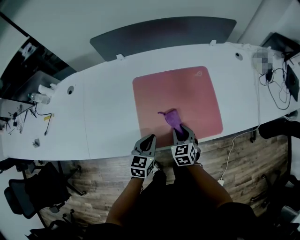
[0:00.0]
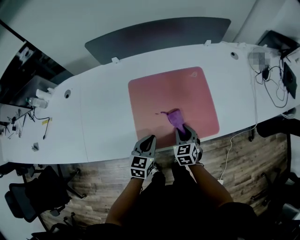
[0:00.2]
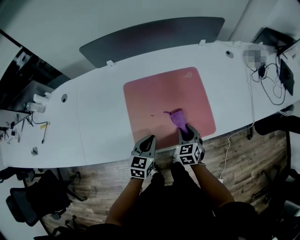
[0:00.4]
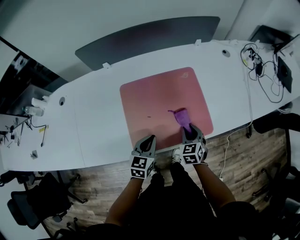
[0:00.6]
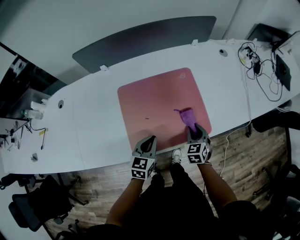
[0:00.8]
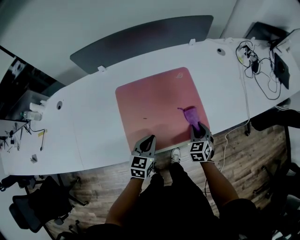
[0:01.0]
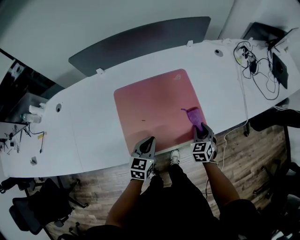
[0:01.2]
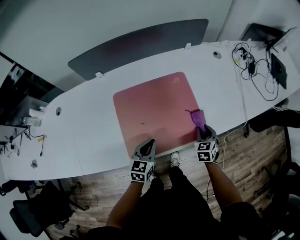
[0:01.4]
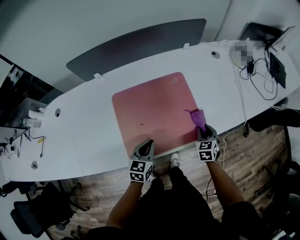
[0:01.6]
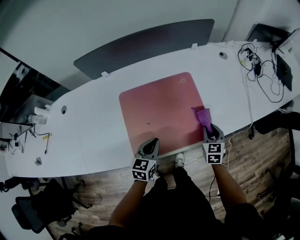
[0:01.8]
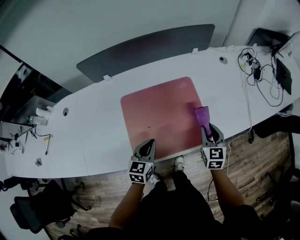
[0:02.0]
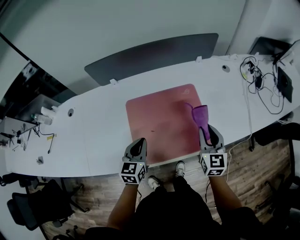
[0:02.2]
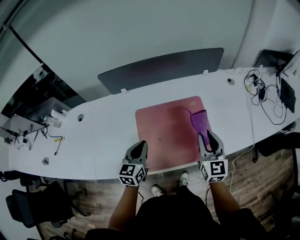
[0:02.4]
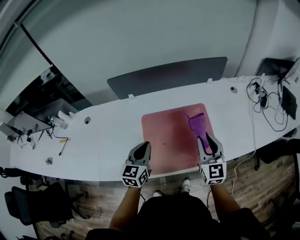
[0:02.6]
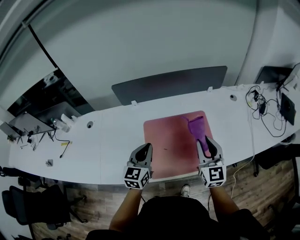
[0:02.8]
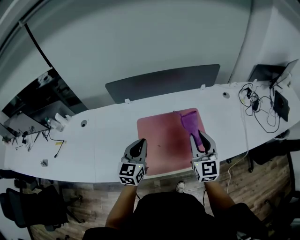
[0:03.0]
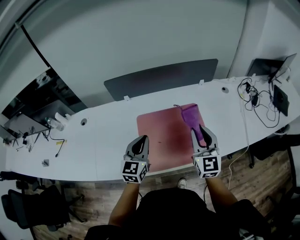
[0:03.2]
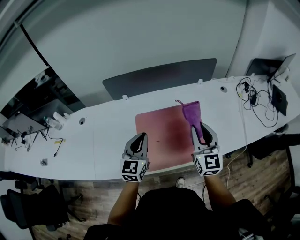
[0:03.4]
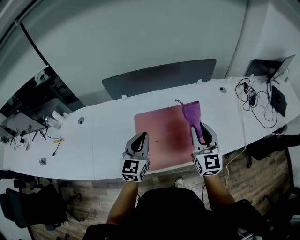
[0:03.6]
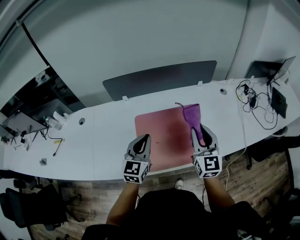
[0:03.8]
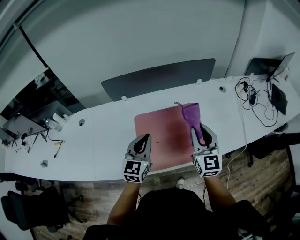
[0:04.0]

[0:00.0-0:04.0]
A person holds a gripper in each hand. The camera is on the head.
0:00.0 to 0:01.4: The right gripper travels to the right by about 20 cm. Meanwhile the left gripper heads to the right, covering some 10 cm.
0:01.4 to 0:02.6: Both grippers move upward and to the left, about 25 cm. The right gripper tilts its fingers approximately 40 degrees upward, while the left gripper turns by about 20 degrees.
0:02.6 to 0:04.0: Both grippers travel together upward, approximately 5 cm.

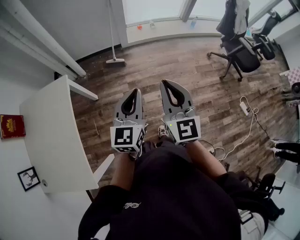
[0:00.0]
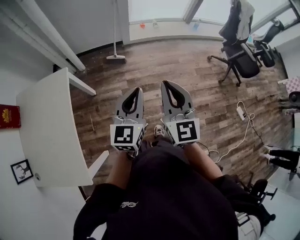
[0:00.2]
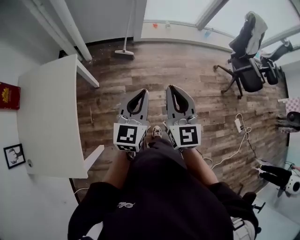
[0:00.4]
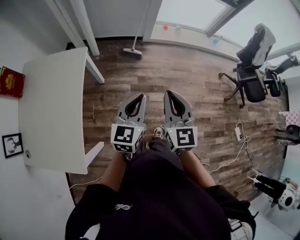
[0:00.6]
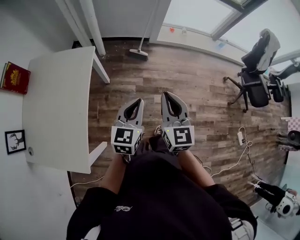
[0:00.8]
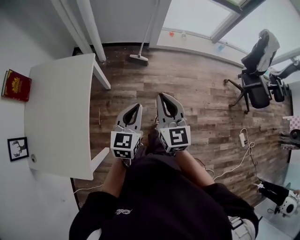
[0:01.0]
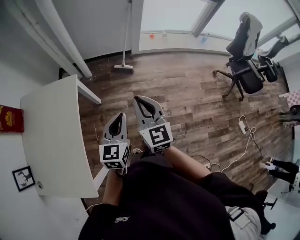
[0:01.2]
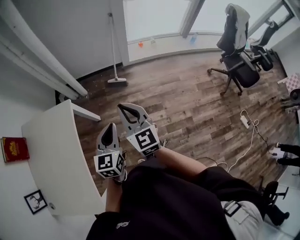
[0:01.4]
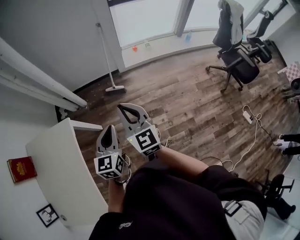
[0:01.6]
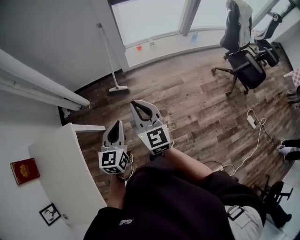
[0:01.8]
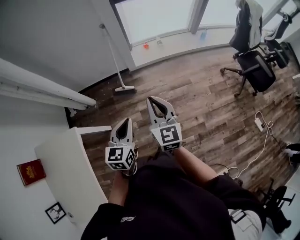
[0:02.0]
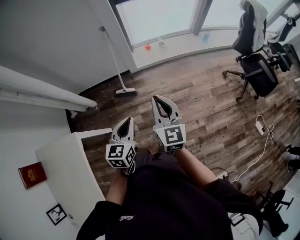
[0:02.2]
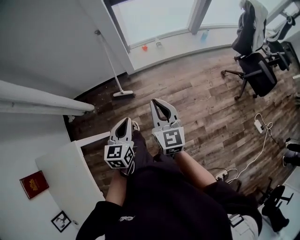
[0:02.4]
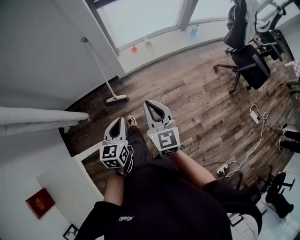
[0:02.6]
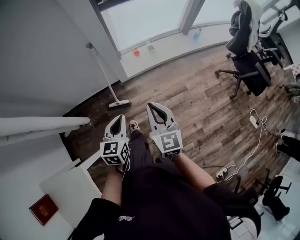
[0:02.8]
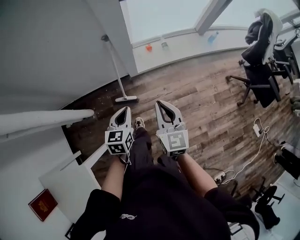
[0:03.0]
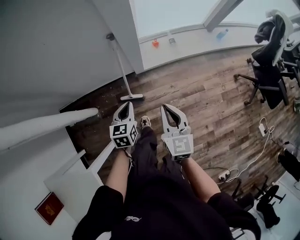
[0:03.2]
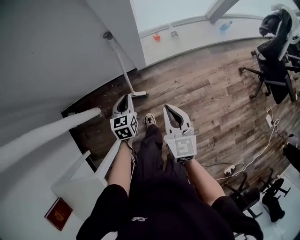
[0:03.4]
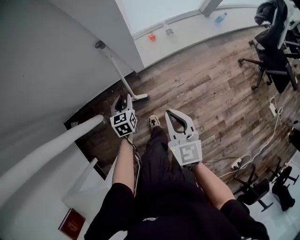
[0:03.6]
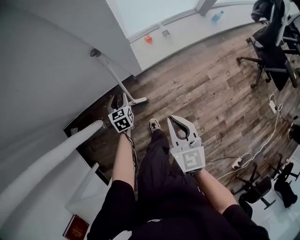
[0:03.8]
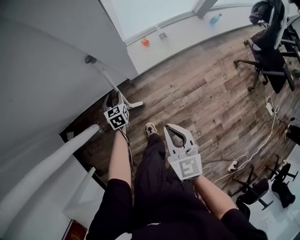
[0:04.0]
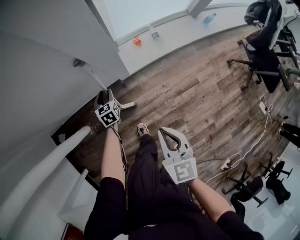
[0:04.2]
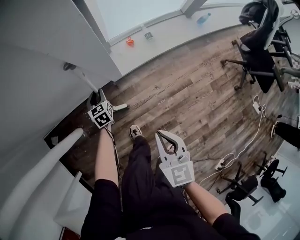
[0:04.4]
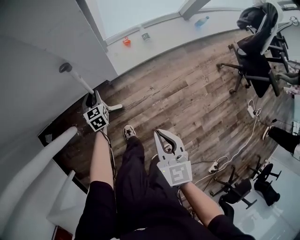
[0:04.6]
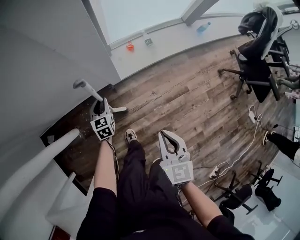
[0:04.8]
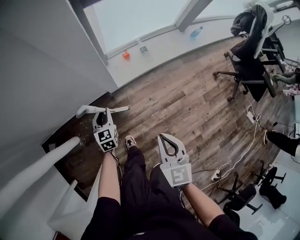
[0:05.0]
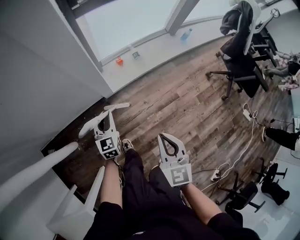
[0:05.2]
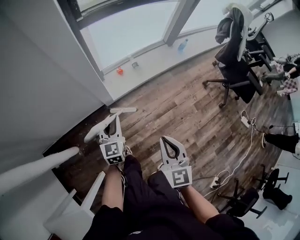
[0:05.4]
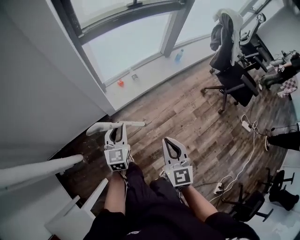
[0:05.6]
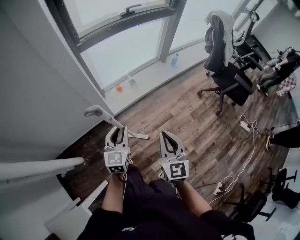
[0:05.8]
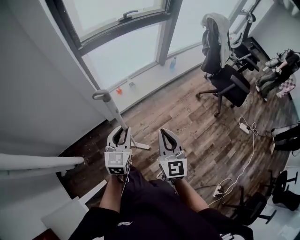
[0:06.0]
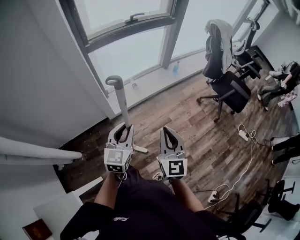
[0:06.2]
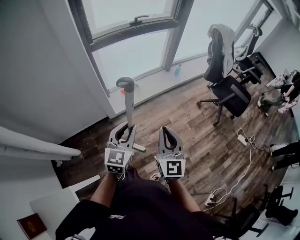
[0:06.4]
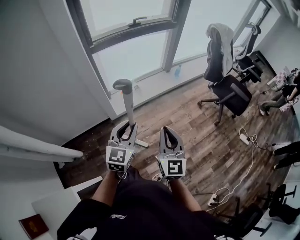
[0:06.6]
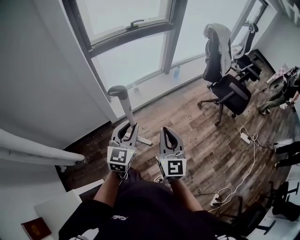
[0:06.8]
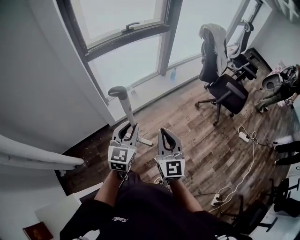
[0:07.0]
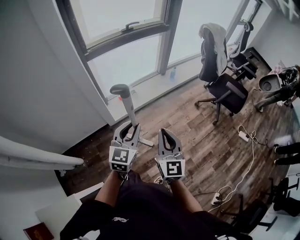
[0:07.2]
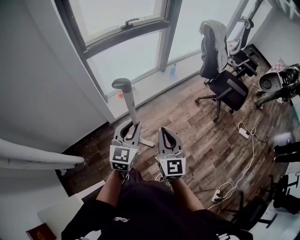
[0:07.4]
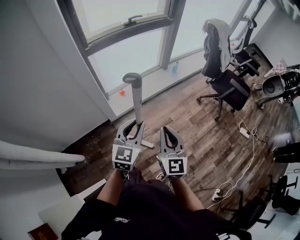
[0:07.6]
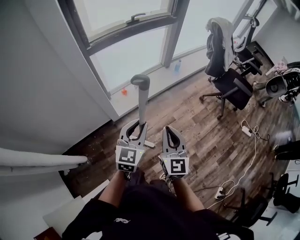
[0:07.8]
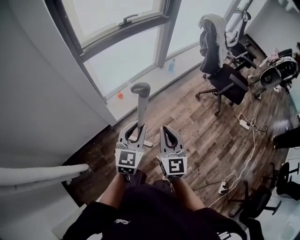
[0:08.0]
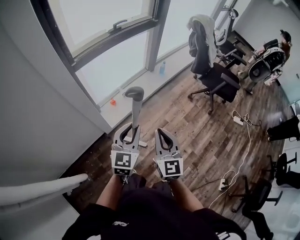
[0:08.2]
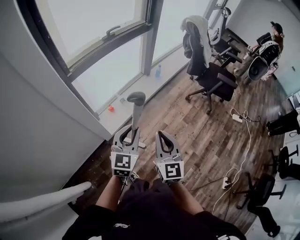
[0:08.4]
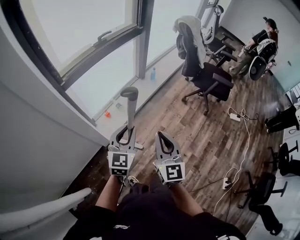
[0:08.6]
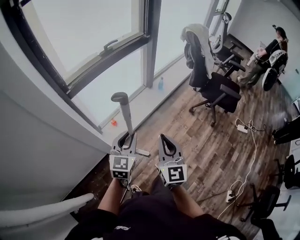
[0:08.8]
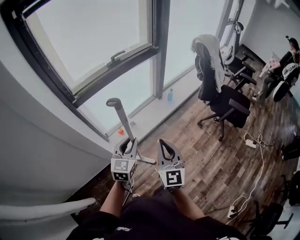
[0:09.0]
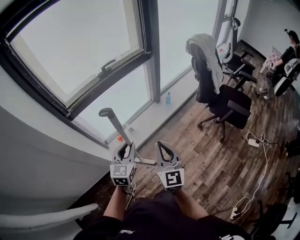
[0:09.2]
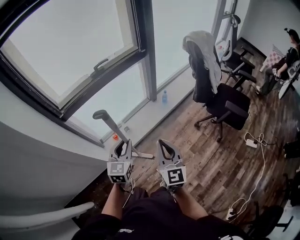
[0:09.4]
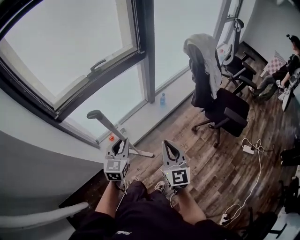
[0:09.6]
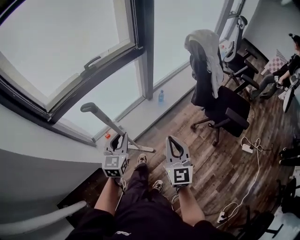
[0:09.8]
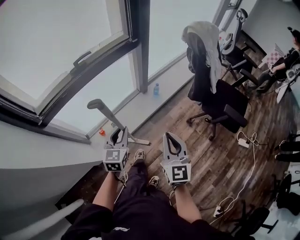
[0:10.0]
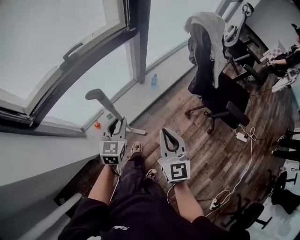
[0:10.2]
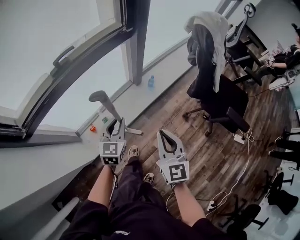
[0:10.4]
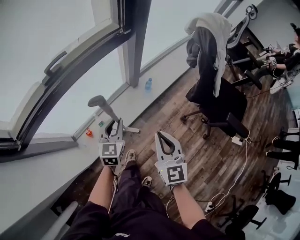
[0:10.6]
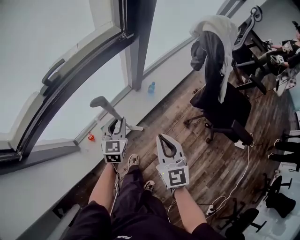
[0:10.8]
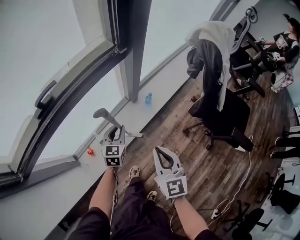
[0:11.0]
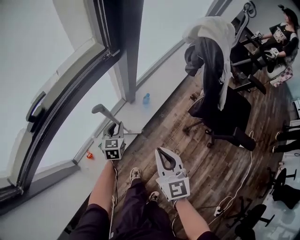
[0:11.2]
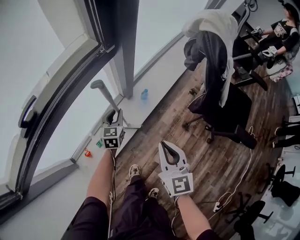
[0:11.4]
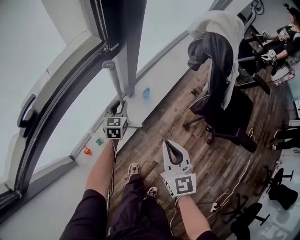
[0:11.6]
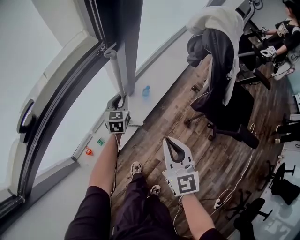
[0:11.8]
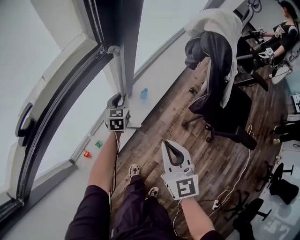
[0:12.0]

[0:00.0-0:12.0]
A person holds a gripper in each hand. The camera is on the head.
0:00.0 to 0:01.6: The left gripper travels forward, to the left and downward by about 20 cm; the right gripper is displaced forward and to the left by roughly 25 cm.
0:01.6 to 0:03.0: The grippers both shift forward by some 40 cm. The right gripper turns by roughly 20 degrees.
0:03.0 to 0:04.4: The right gripper moves downward and forward, about 15 cm. The left gripper heads forward and downward, covering about 40 cm, and opens up.
0:04.4 to 0:06.0: The left gripper goes approximately 40 cm upward, and swivels approximately 40 degrees. The right gripper shifts by about 30 cm, and rotates about 30 degrees.
0:06.0 to 0:07.6: The left gripper heads upward and to the right, covering some 10 cm.
0:07.6 to 0:09.0: The two grippers go roughly 20 cm forward.
0:09.0 to 0:10.4: The left gripper goes some 35 cm forward. Meanwhile the right gripper travels forward and to the right by roughly 35 cm.
0:10.4 to 0:12.0: The right gripper goes roughly 20 cm forward, while the left gripper travels forward and downward by roughly 40 cm.

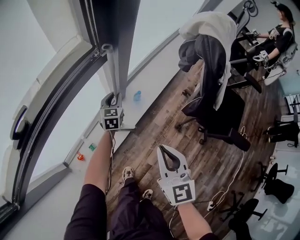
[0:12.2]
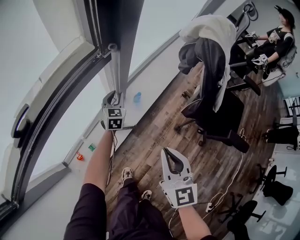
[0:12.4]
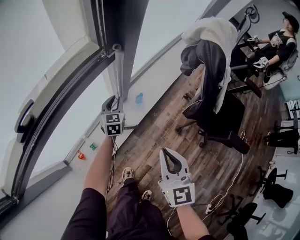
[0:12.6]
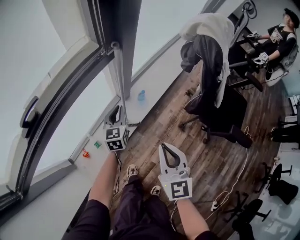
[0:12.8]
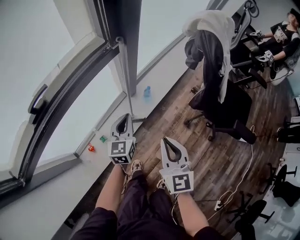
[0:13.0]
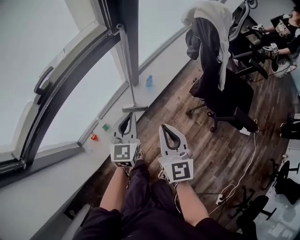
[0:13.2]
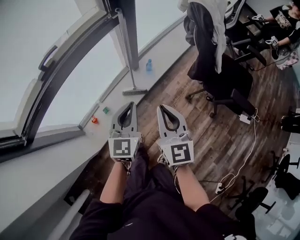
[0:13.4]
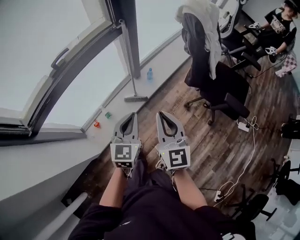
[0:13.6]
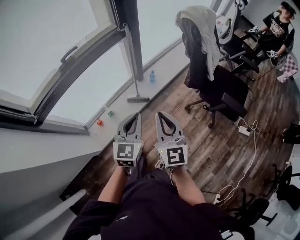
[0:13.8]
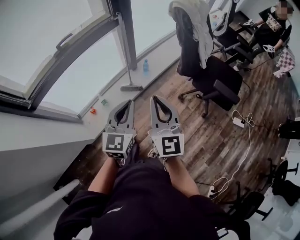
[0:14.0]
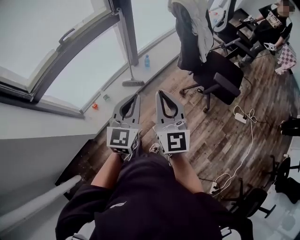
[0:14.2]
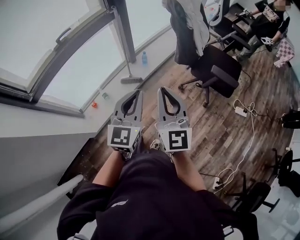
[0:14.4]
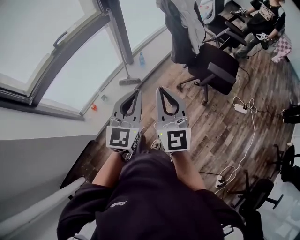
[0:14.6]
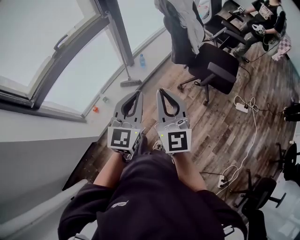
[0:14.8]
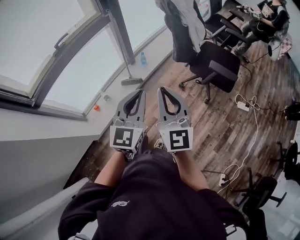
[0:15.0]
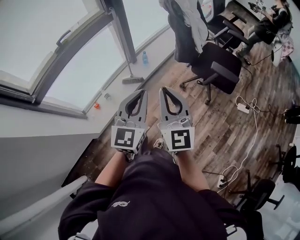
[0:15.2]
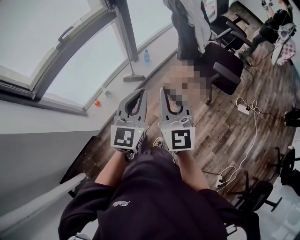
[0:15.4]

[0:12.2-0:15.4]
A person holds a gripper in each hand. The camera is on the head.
0:12.2 to 0:13.8: The left gripper heads backward and upward, covering some 60 cm, while the right gripper goes some 30 cm backward and upward.
0:13.8 to 0:15.4: Both grippers travel together backward, to the right and upward, roughly 15 cm.

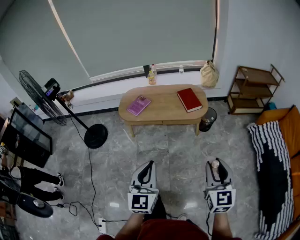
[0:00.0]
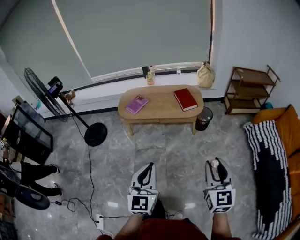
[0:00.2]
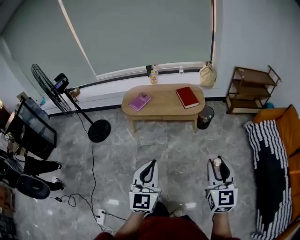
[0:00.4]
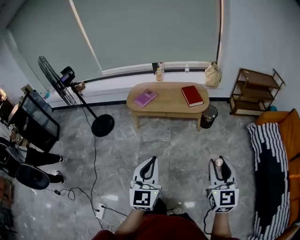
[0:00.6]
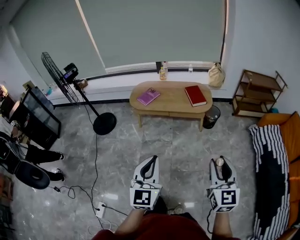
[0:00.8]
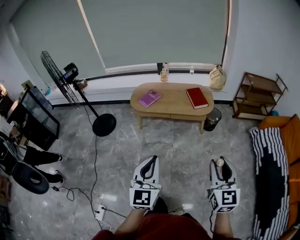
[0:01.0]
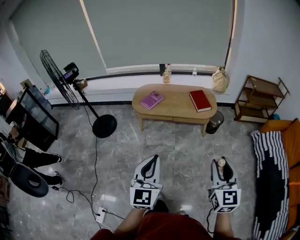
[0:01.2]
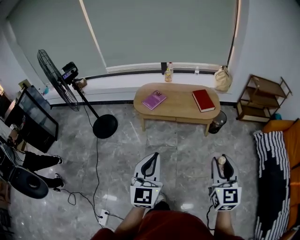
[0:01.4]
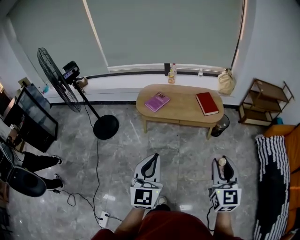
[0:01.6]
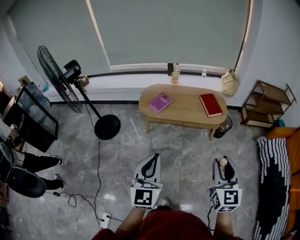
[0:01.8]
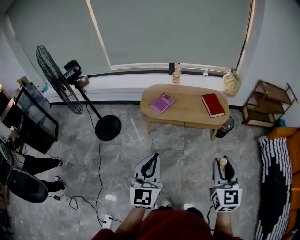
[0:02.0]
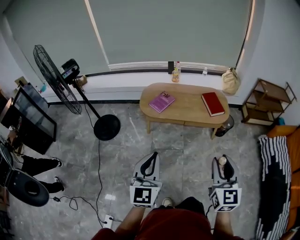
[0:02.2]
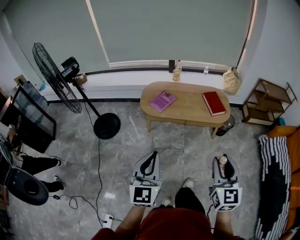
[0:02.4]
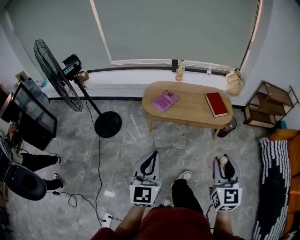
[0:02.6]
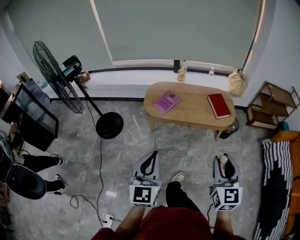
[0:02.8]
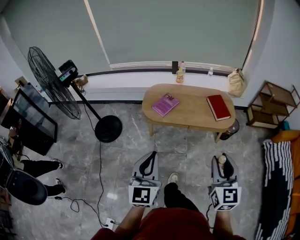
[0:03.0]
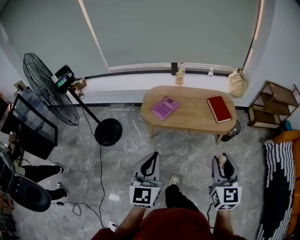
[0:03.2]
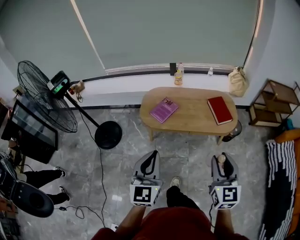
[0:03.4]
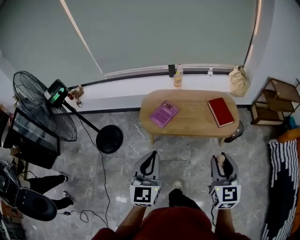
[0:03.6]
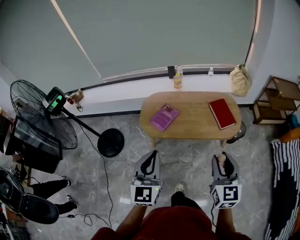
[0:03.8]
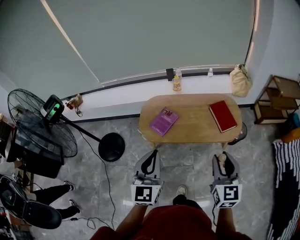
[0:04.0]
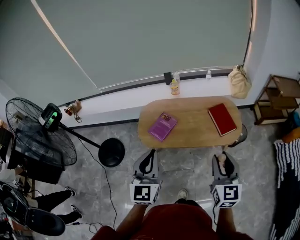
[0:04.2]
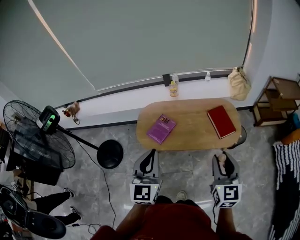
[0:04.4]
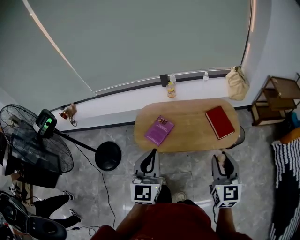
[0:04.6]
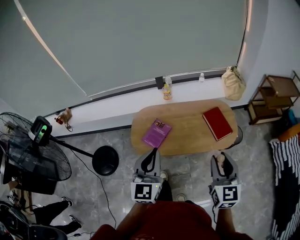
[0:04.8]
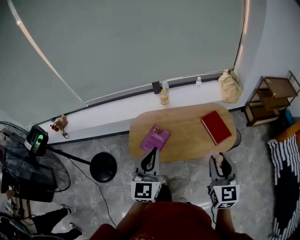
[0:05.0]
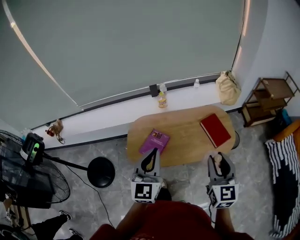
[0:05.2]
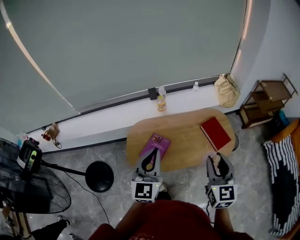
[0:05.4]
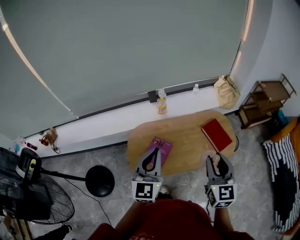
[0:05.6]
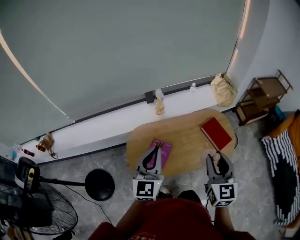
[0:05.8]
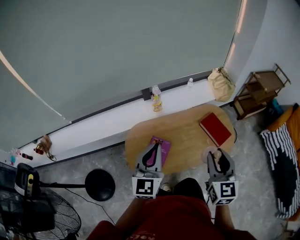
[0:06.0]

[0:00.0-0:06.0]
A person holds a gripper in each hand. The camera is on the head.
0:00.0 to 0:01.6: Both grippers move to the left, approximately 10 cm.
0:01.6 to 0:03.0: Both grippers travel together forward and to the left, about 15 cm.
0:03.0 to 0:04.4: Both grippers move forward, some 30 cm.
0:04.4 to 0:06.0: Both grippers move forward and to the left, about 25 cm. The left gripper rotates roughly 20 degrees.
